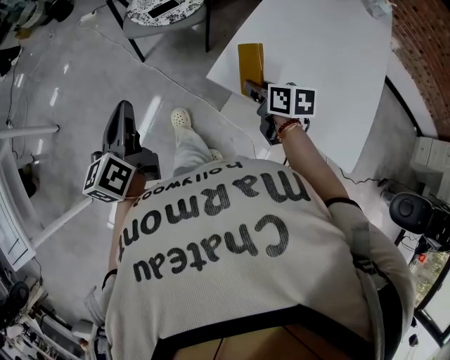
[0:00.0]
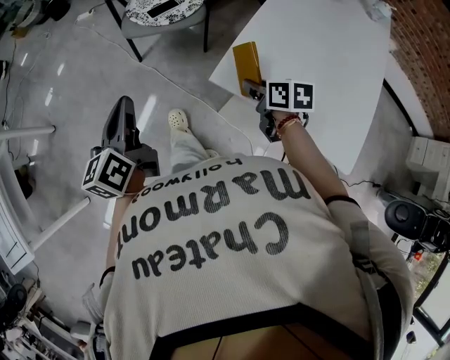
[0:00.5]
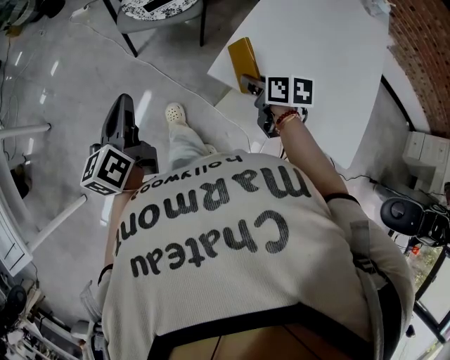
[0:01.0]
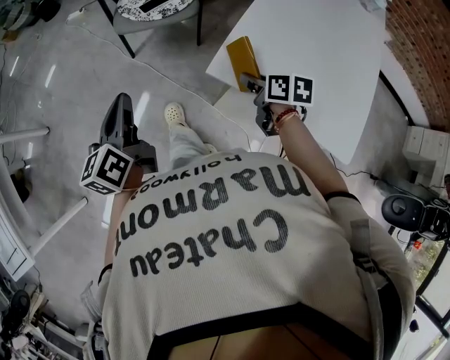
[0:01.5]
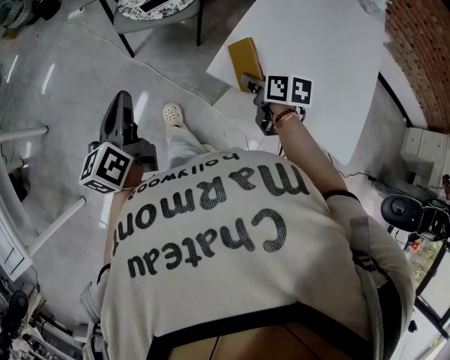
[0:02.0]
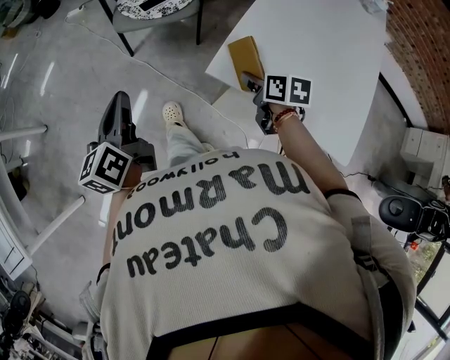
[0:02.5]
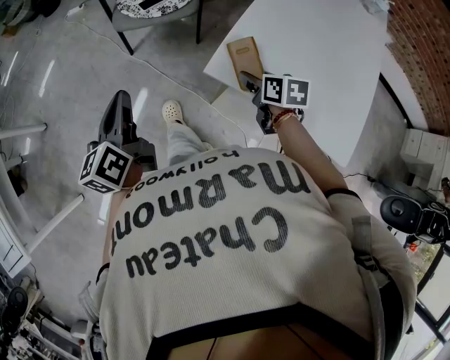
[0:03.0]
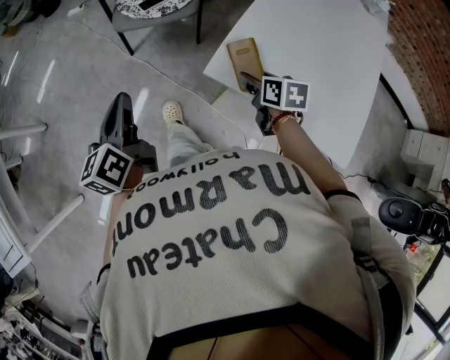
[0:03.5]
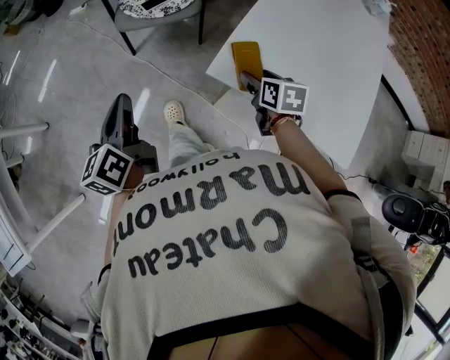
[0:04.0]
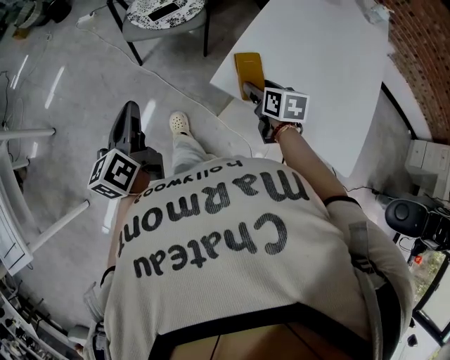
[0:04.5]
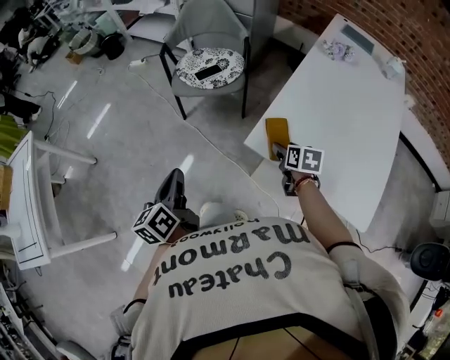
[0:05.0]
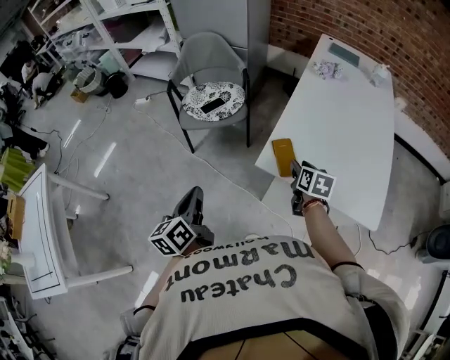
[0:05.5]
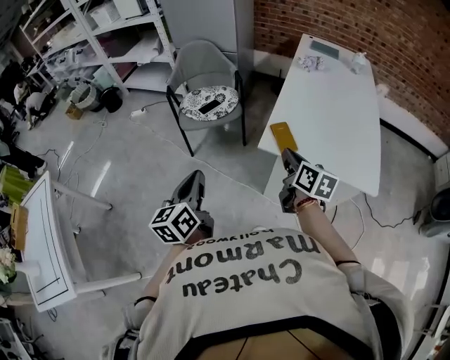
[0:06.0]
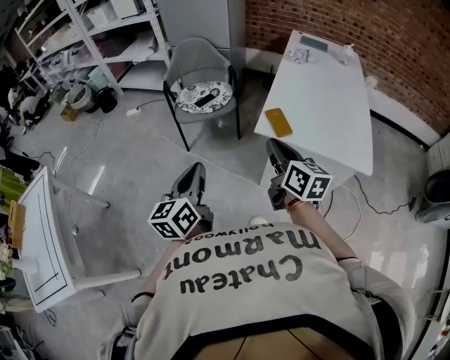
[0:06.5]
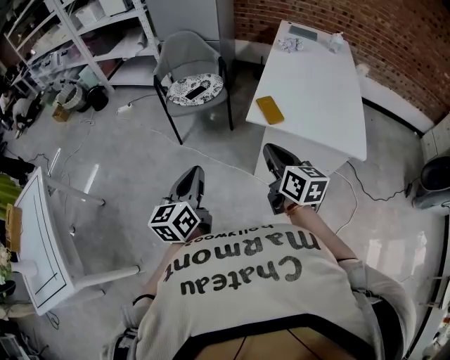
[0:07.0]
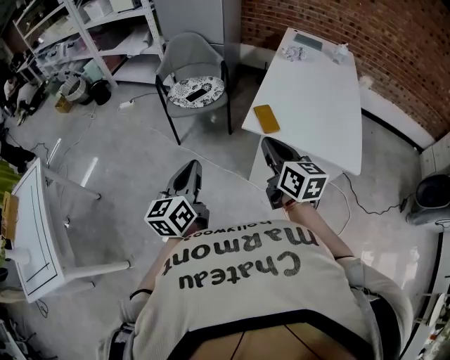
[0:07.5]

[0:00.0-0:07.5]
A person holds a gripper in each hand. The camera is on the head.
0:00.0 to 0:02.0: There are only small adjustments of the grippers.
0:02.0 to 0:04.0: The right gripper opens up.
0:04.0 to 0:05.5: The right gripper goes roughly 10 cm upward, and closes its fingers, while the left gripper moves backward, roughly 5 cm.
0:05.5 to 0:07.5: The right gripper is displaced backward, upward and to the left by approximately 30 cm, turns by approximately 30 degrees, and closes up. Meanwhile the left gripper shifts about 15 cm backward and upward.

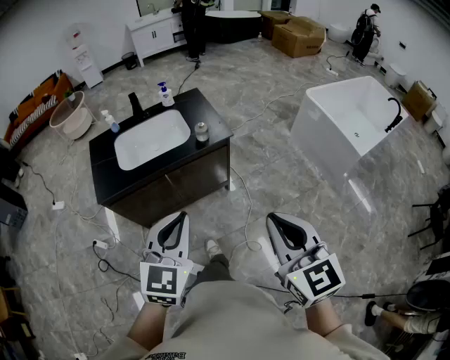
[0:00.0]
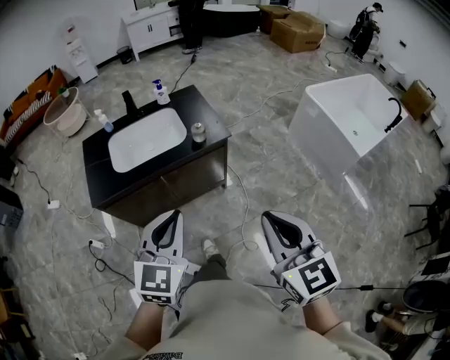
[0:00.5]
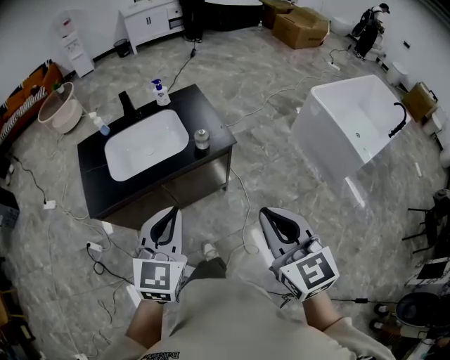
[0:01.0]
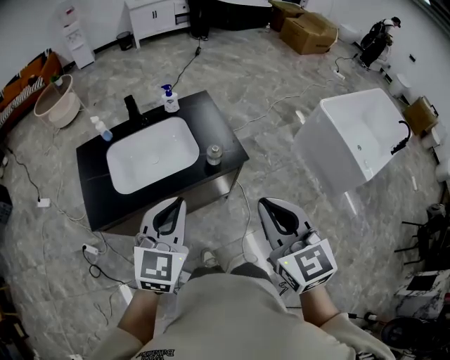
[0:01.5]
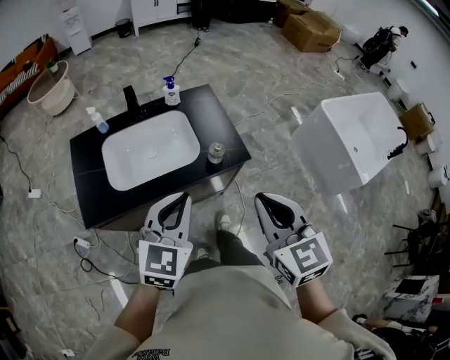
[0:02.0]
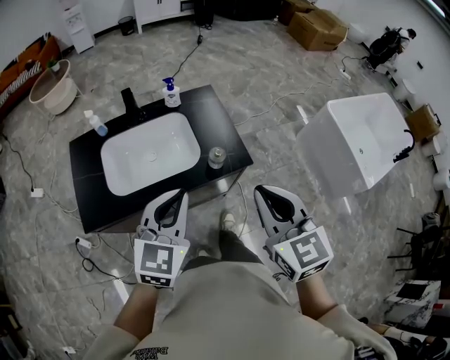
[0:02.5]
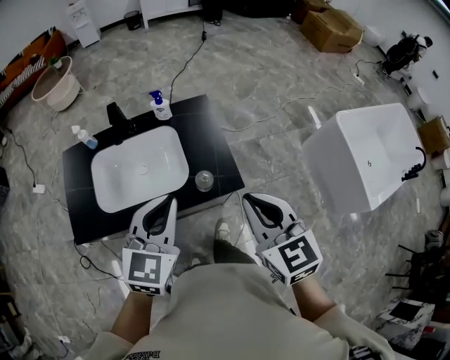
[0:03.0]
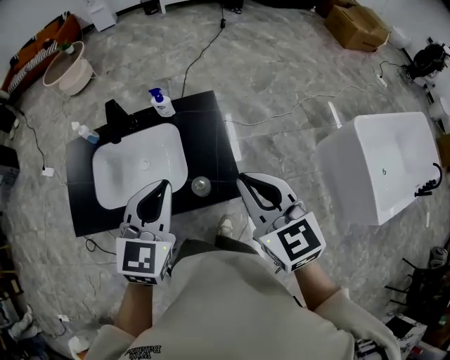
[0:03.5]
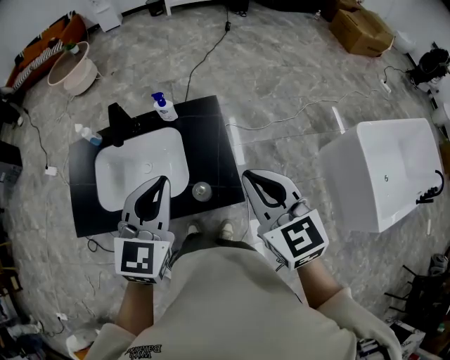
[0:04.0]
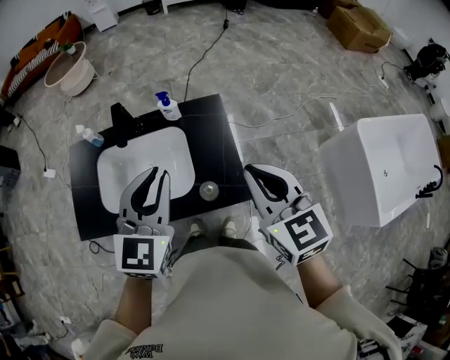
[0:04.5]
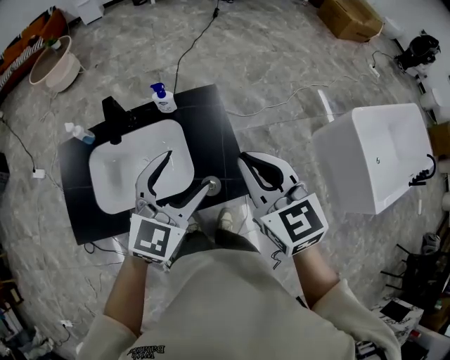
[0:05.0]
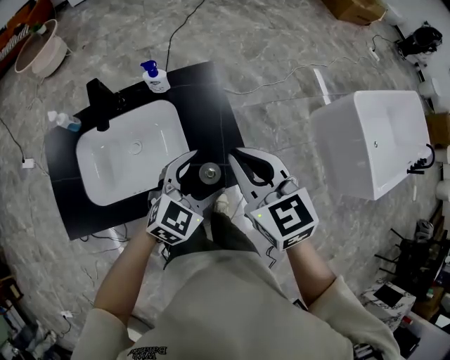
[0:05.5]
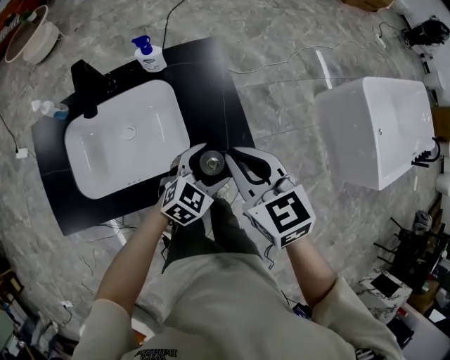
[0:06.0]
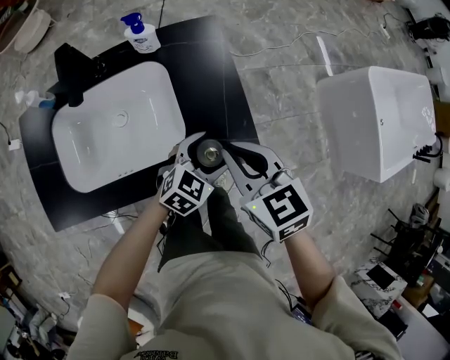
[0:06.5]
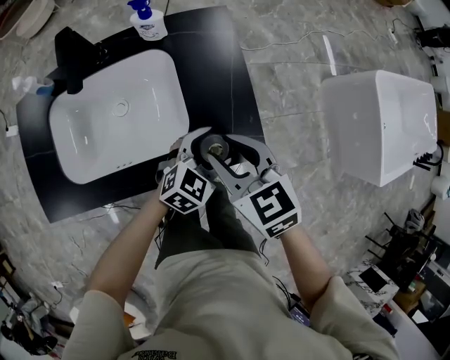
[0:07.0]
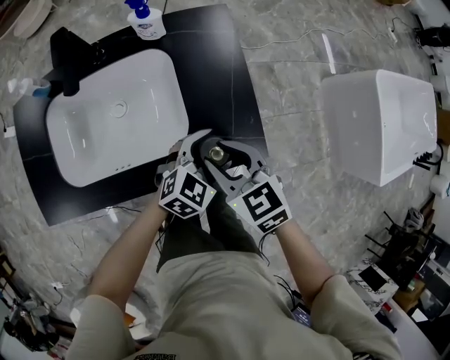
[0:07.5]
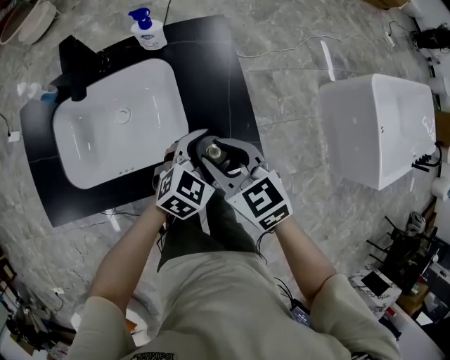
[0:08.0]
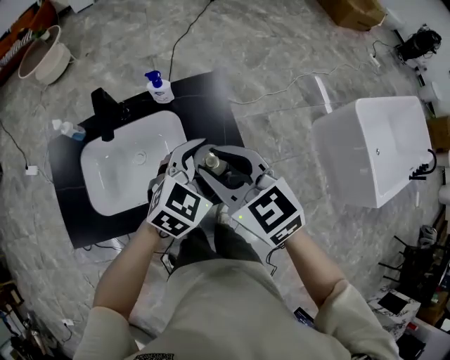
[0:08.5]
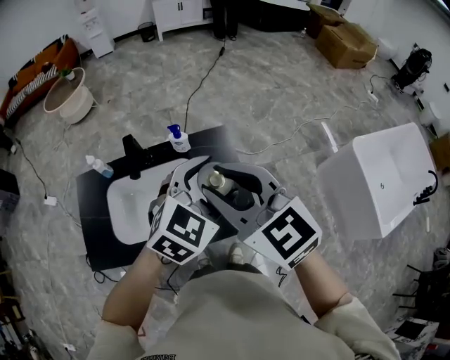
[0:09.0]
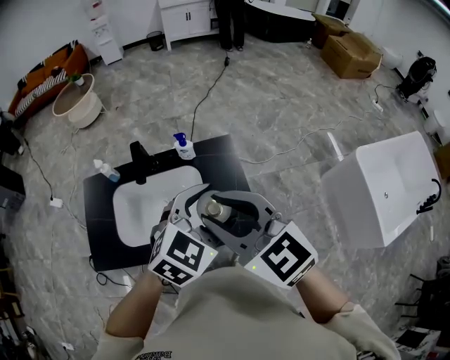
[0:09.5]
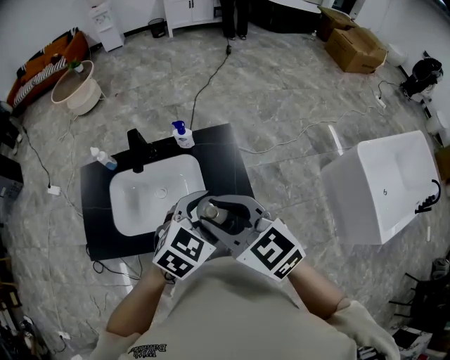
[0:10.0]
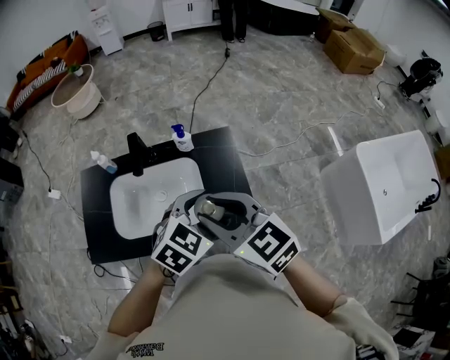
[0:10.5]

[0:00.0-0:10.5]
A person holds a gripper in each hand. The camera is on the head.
0:00.0 to 0:02.0: Both grippers travel together forward, about 30 cm.
0:02.0 to 0:04.0: The grippers both shift forward and to the right by about 25 cm.
0:04.0 to 0:06.5: The left gripper heads downward, covering approximately 35 cm, rotates roughly 40 degrees, and opens up, while the right gripper heads downward and to the left, covering about 25 cm.
0:06.5 to 0:08.5: The two grippers go about 15 cm upward. The right gripper opens.
0:08.5 to 0:10.5: The two grippers go about 10 cm upward.

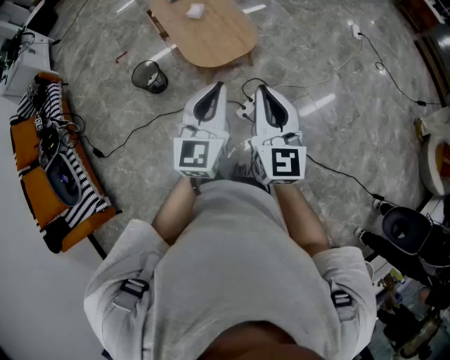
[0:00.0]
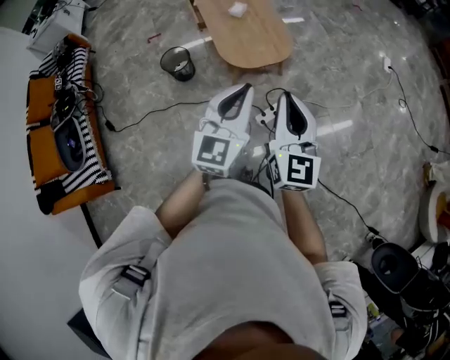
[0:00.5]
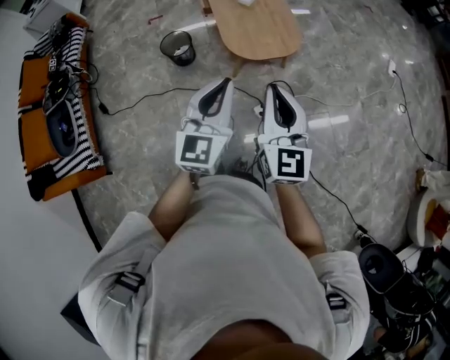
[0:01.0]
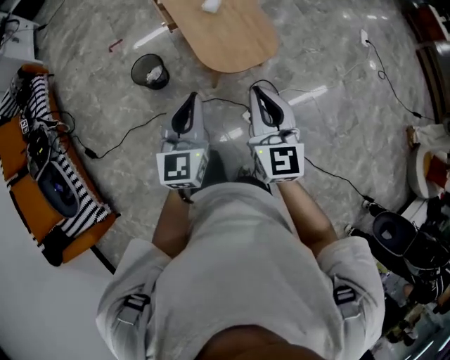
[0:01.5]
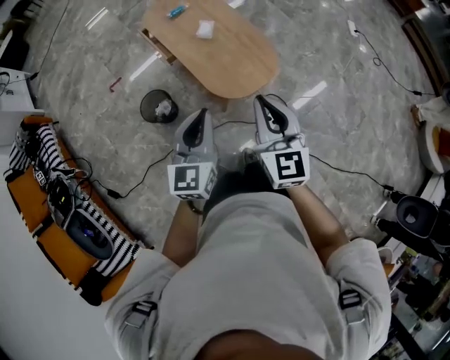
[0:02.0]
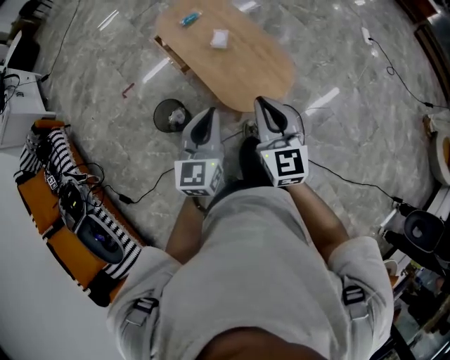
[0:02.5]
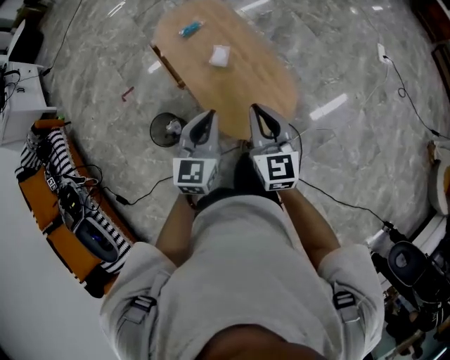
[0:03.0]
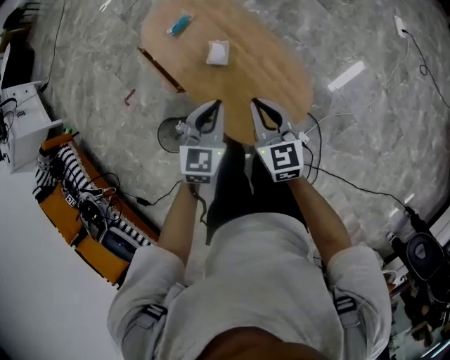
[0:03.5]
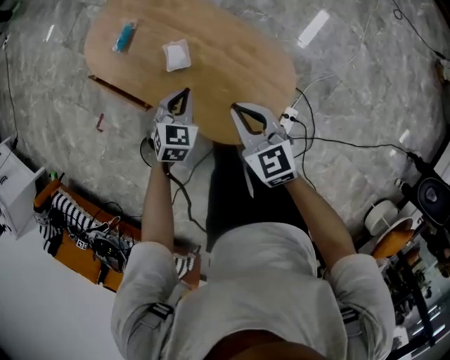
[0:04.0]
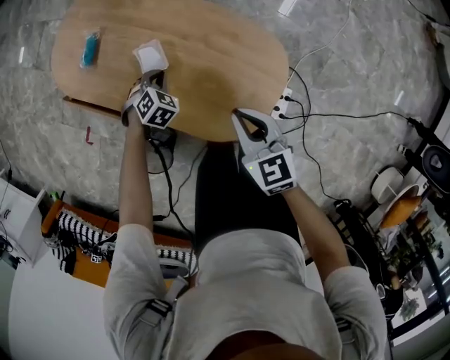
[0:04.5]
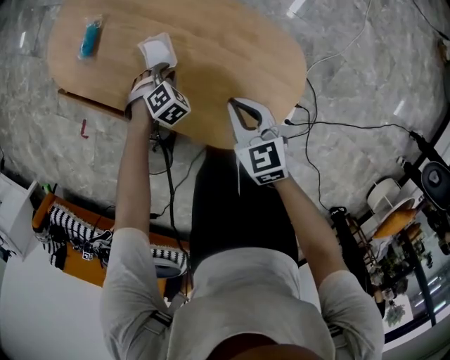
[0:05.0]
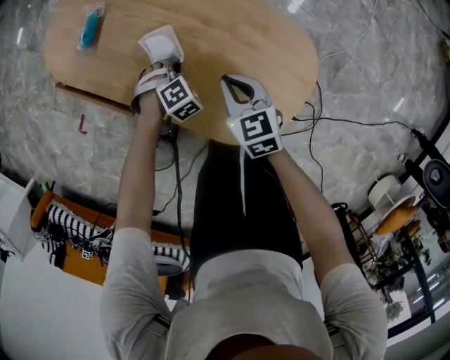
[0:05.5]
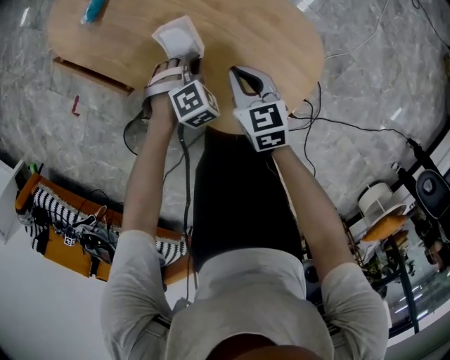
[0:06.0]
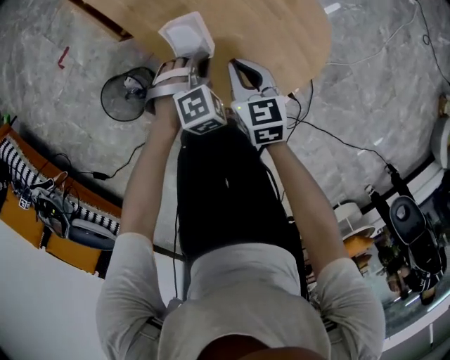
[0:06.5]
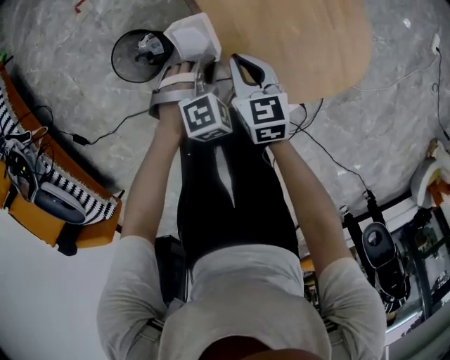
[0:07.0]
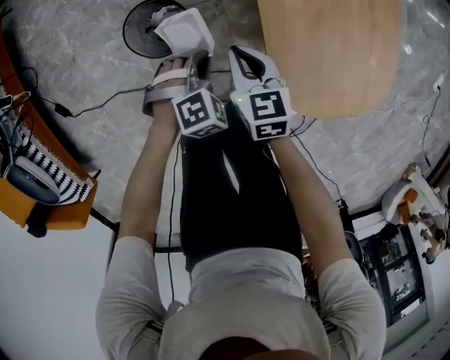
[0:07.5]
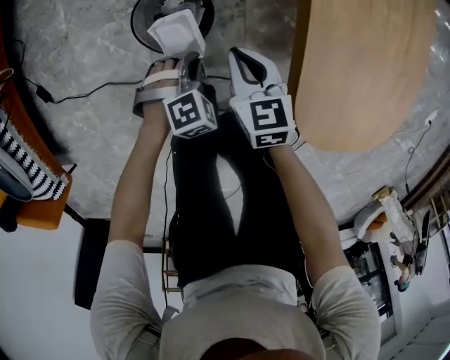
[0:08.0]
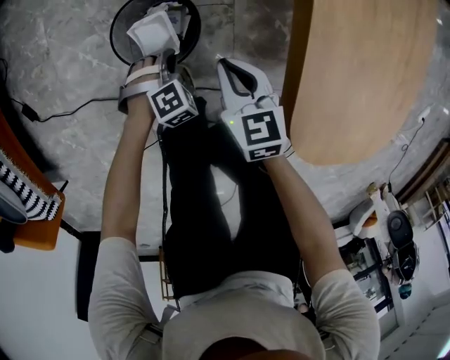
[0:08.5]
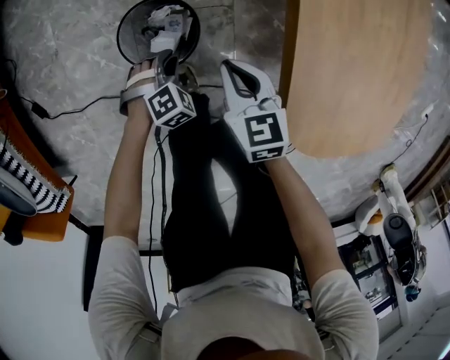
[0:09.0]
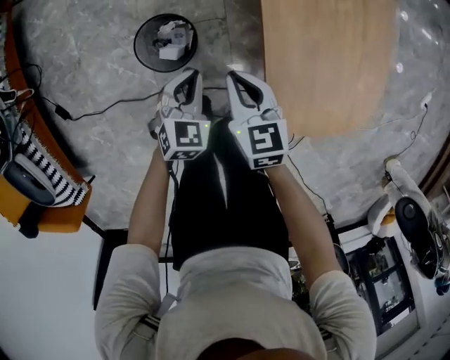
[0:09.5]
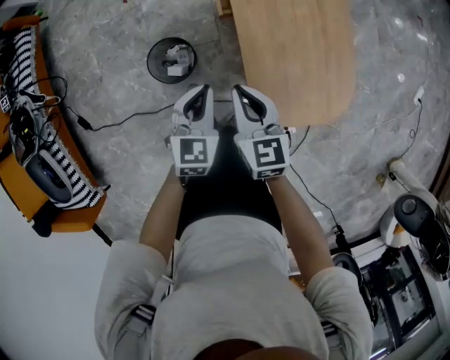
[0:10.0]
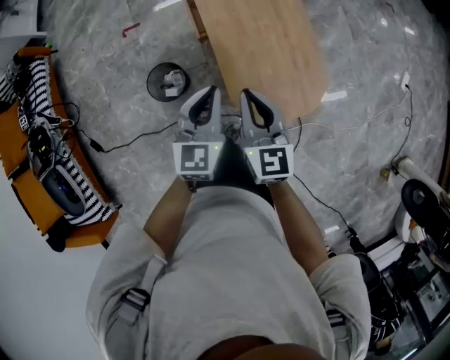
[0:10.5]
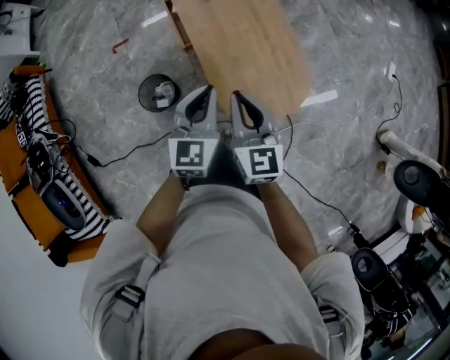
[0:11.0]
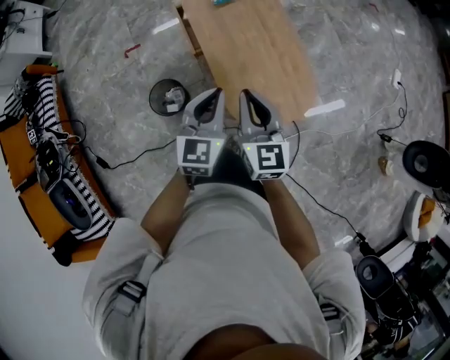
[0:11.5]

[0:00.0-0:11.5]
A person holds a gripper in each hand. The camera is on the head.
0:00.0 to 0:02.0: The left gripper moves to the left and forward, roughly 30 cm, while the right gripper moves forward and to the left, some 30 cm.
0:02.0 to 0:04.0: Both grippers move forward and downward, approximately 50 cm. The right gripper changes its angle by approximately 20 degrees. The left gripper points its fingers roughly 40 degrees further downward.
0:04.0 to 0:06.0: Both grippers move downward, approximately 20 cm. The left gripper swivels some 40 degrees, and opens, then closes again.
0:06.0 to 0:07.5: The right gripper shifts by roughly 30 cm, and turns by some 40 degrees; the left gripper moves some 35 cm, and turns by about 40 degrees.
0:07.5 to 0:09.5: The right gripper goes downward and returns, some 10 cm each way. Meanwhile the left gripper travels downward and back again, about 20 cm each way, swivels approximately 40 degrees, and opens, then closes once more.
0:09.5 to 0:11.5: The grippers both shift upward and to the right by some 40 cm. The left gripper changes its angle by approximately 30 degrees. Meanwhile the right gripper swivels approximately 40 degrees.
